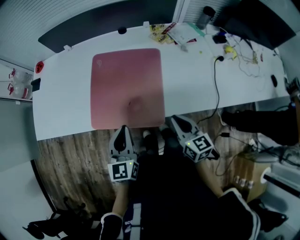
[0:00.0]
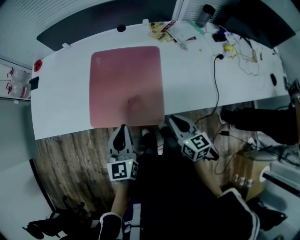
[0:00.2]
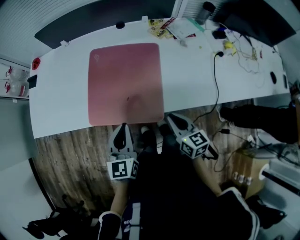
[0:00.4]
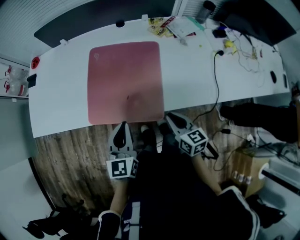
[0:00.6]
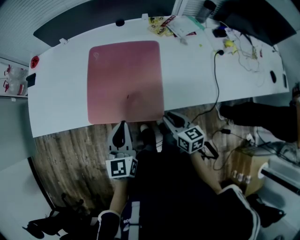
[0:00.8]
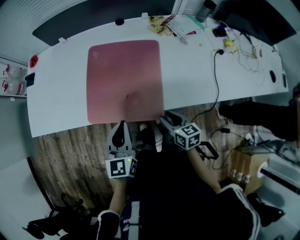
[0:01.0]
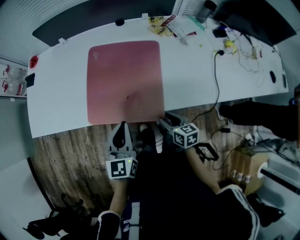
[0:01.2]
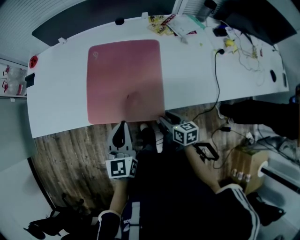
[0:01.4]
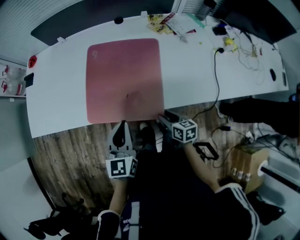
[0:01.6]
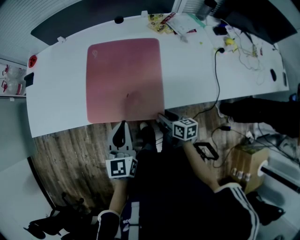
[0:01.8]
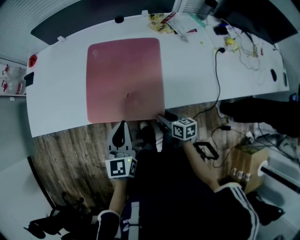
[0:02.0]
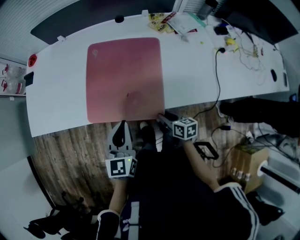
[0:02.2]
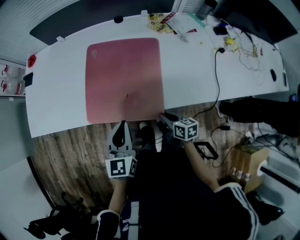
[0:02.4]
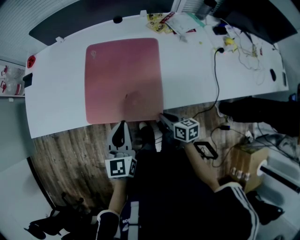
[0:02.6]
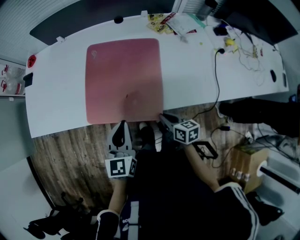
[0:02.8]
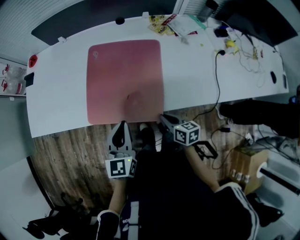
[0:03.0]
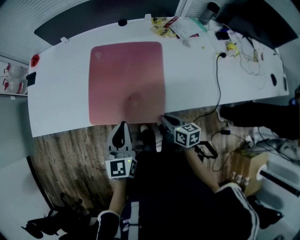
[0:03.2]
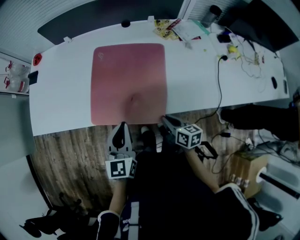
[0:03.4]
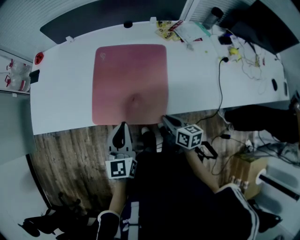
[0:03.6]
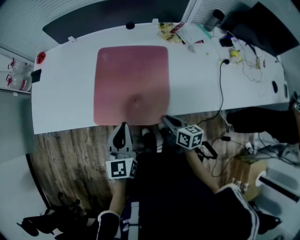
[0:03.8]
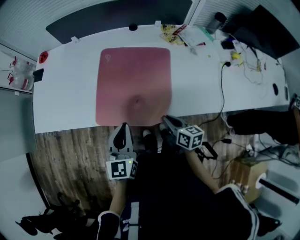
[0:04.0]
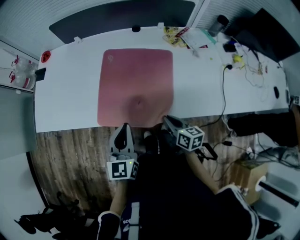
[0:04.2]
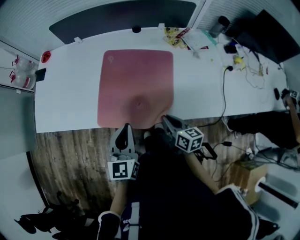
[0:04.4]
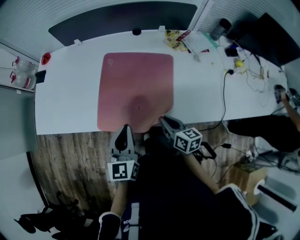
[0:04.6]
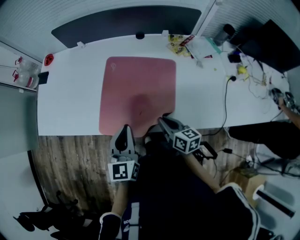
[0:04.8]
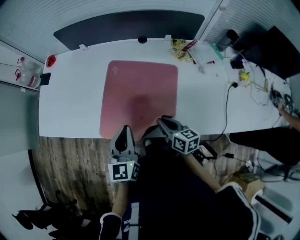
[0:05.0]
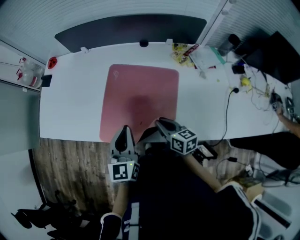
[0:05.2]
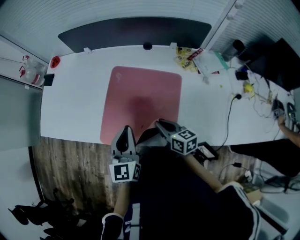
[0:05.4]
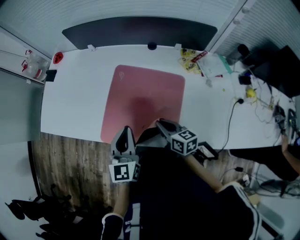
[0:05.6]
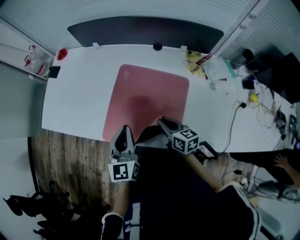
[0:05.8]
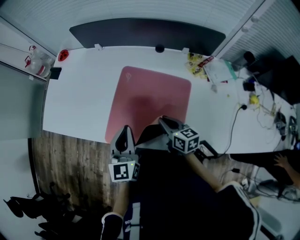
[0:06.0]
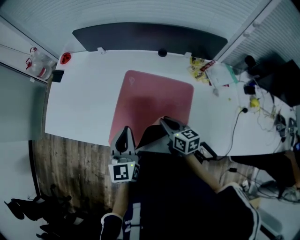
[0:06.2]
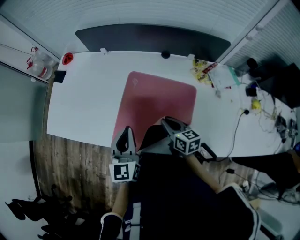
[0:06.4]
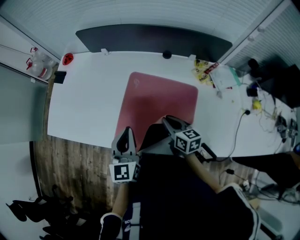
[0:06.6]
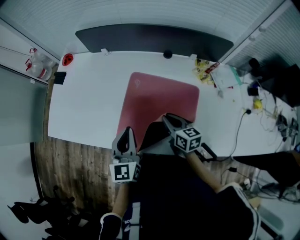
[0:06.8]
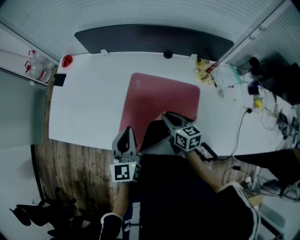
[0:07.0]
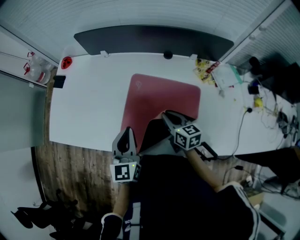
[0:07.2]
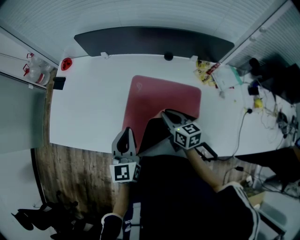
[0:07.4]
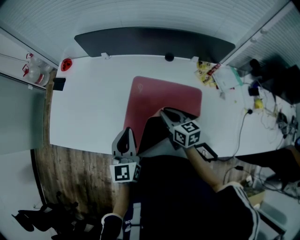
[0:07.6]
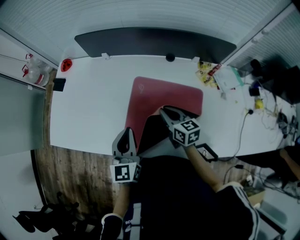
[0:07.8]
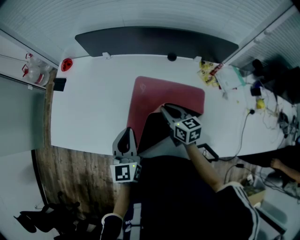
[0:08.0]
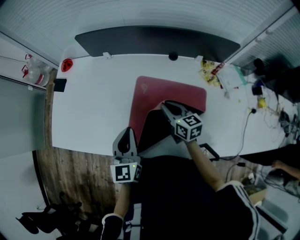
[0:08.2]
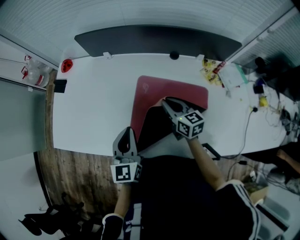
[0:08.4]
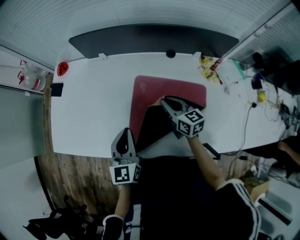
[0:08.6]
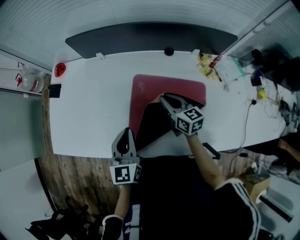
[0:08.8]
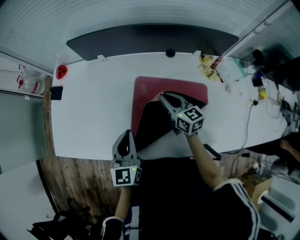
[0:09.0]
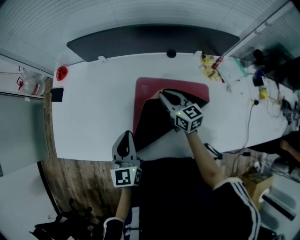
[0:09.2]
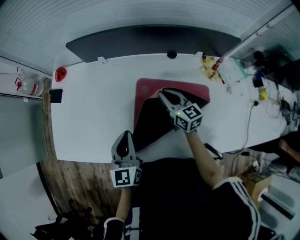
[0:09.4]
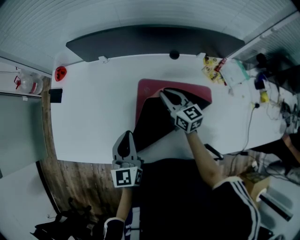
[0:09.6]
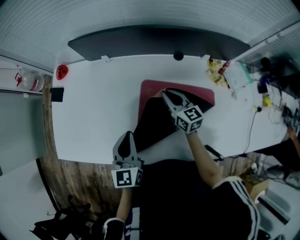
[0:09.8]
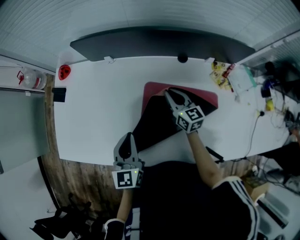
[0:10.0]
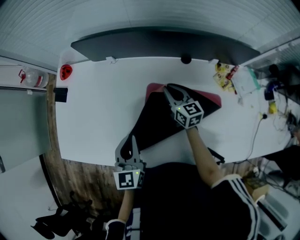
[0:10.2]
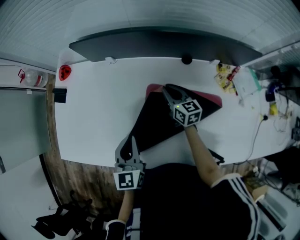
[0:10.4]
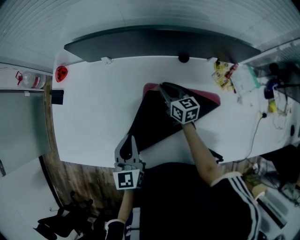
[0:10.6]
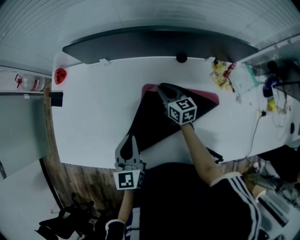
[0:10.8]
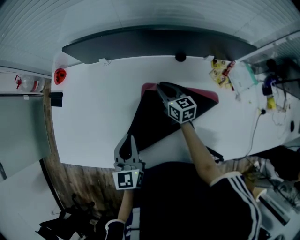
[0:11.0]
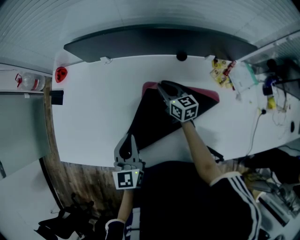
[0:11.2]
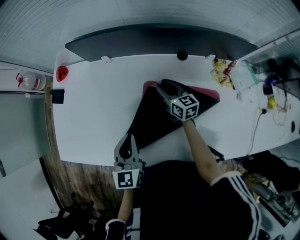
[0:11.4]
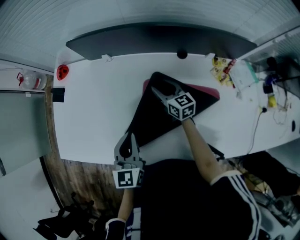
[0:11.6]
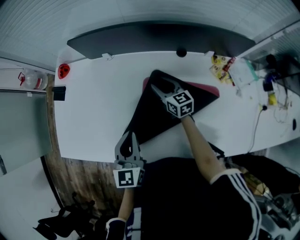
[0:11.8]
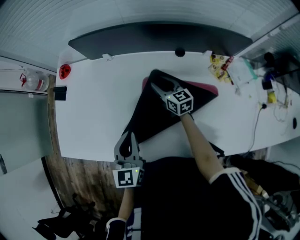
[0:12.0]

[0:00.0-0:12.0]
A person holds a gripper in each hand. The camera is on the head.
0:00.0 to 0:01.6: The right gripper heads downward, covering approximately 15 cm, turns by about 30 degrees, and opens.
0:01.6 to 0:03.0: The right gripper closes its fingers.
0:03.0 to 0:04.4: The right gripper moves upward, some 5 cm.
0:04.4 to 0:06.0: The two grippers go roughly 15 cm forward.
0:06.0 to 0:07.6: The right gripper heads forward, covering roughly 10 cm. The left gripper moves forward and to the left, approximately 10 cm.
0:07.6 to 0:09.0: The right gripper is displaced forward by approximately 10 cm.
0:09.0 to 0:10.4: The right gripper travels forward and downward by roughly 15 cm; the left gripper goes approximately 5 cm forward.
0:10.4 to 0:12.0: The right gripper opens up.

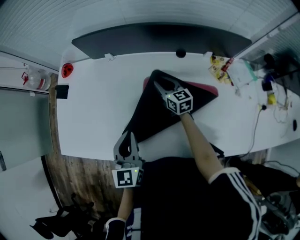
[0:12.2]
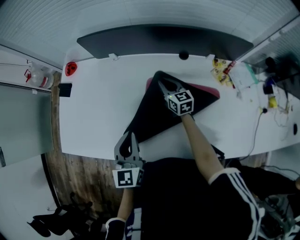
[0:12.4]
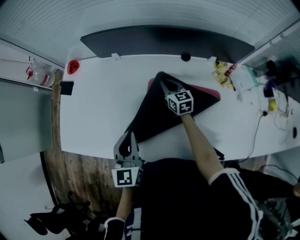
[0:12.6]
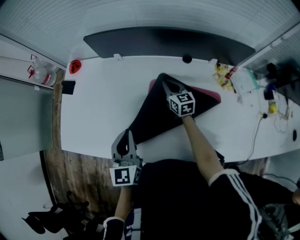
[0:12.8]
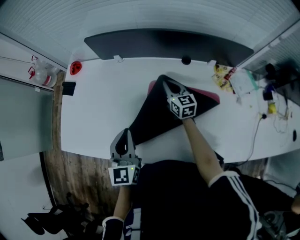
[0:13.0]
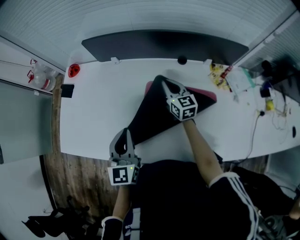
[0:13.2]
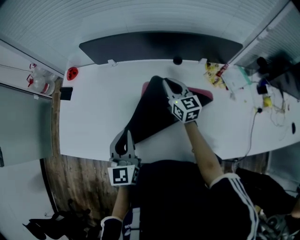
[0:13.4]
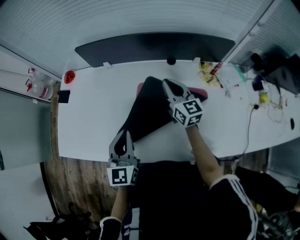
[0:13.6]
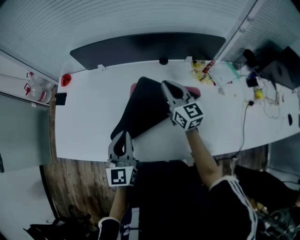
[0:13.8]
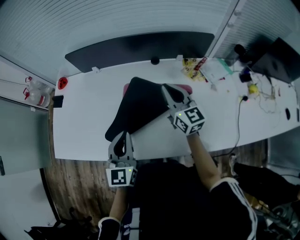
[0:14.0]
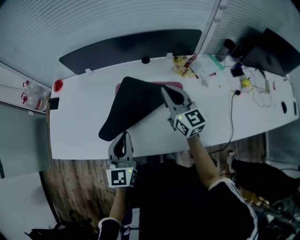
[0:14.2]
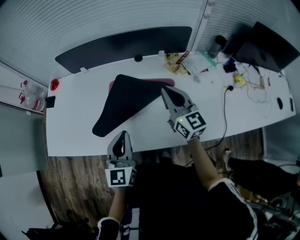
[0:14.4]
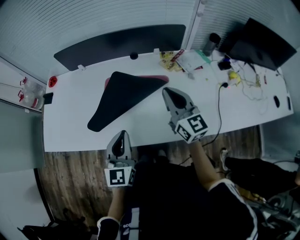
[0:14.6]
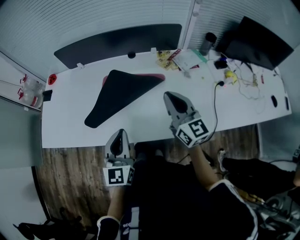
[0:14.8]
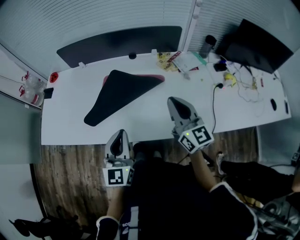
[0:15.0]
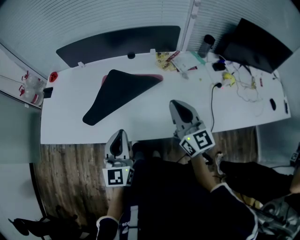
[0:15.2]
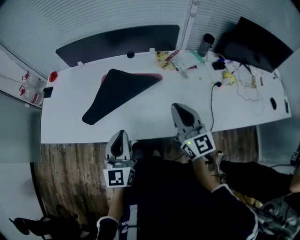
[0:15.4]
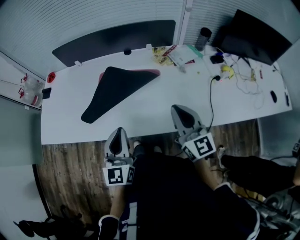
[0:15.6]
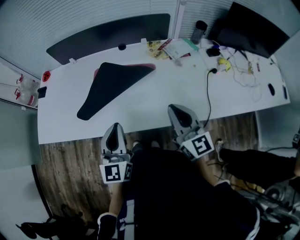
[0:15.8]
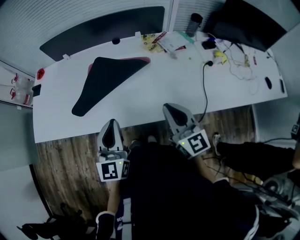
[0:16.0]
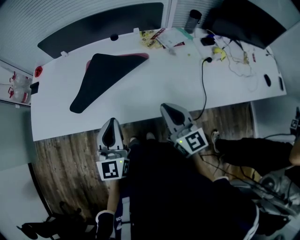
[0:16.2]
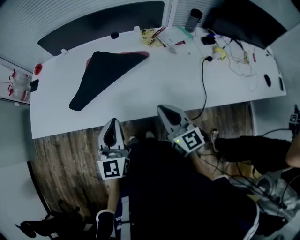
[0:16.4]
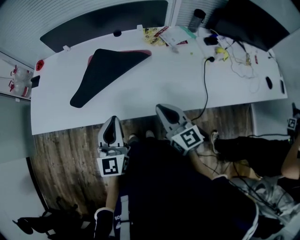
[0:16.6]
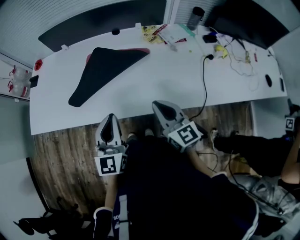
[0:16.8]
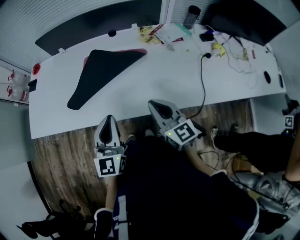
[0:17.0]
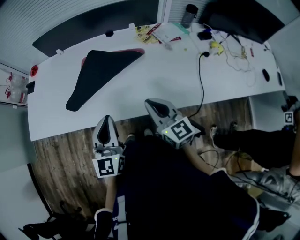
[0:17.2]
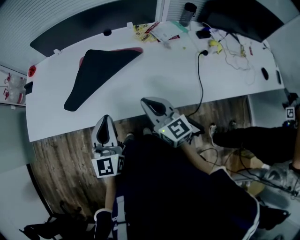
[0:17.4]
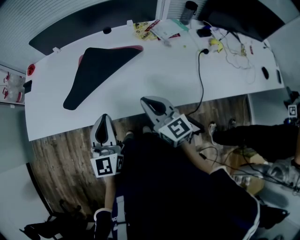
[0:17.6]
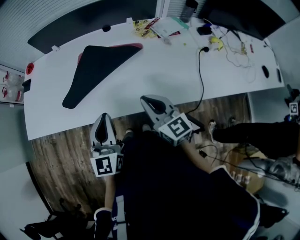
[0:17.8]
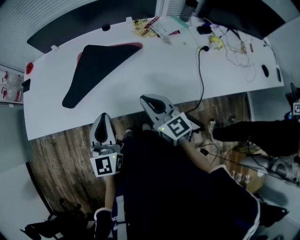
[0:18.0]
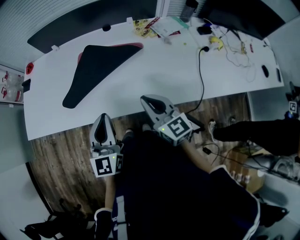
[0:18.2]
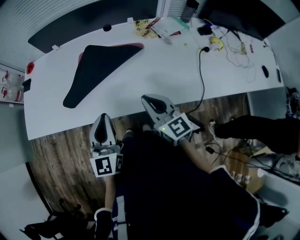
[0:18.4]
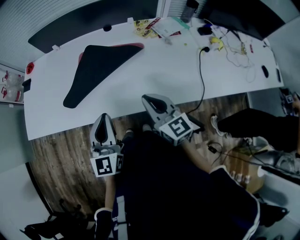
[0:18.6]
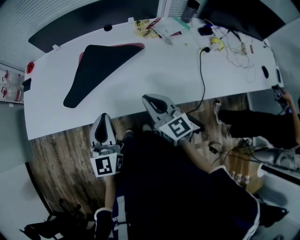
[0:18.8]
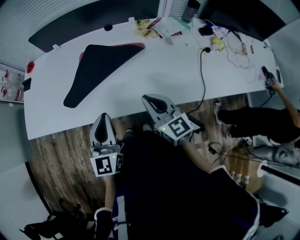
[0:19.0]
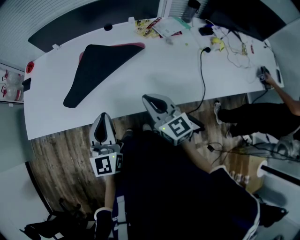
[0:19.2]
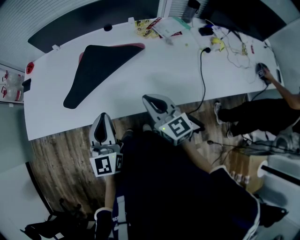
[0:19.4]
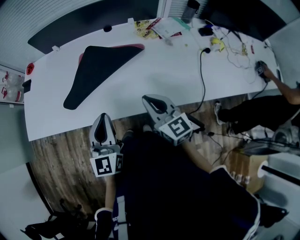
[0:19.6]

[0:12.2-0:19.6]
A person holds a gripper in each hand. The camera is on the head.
0:12.2 to 0:13.6: The right gripper is displaced upward, backward and to the right by approximately 15 cm, and closes.
0:13.6 to 0:15.2: Both grippers travel together backward and to the right, about 30 cm.
0:15.2 to 0:16.6: The right gripper travels backward and downward by approximately 15 cm.
0:16.6 to 0:18.2: There are only small adjustments of the grippers.
0:18.2 to 0:19.6: The two grippers keep their place.

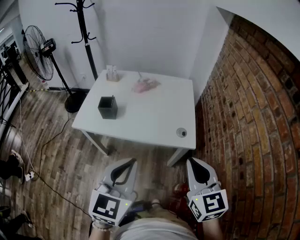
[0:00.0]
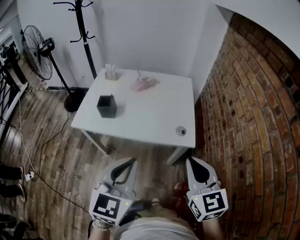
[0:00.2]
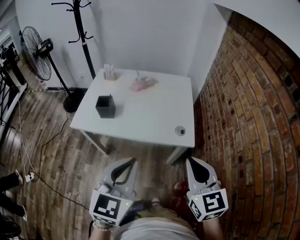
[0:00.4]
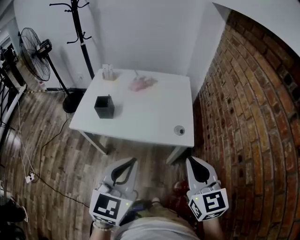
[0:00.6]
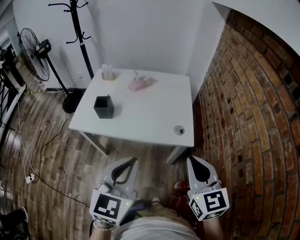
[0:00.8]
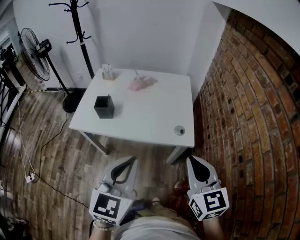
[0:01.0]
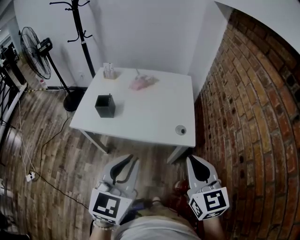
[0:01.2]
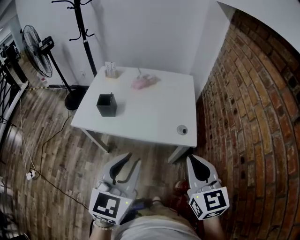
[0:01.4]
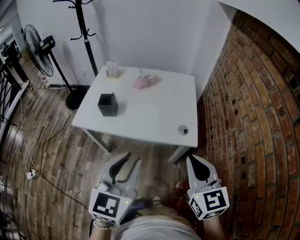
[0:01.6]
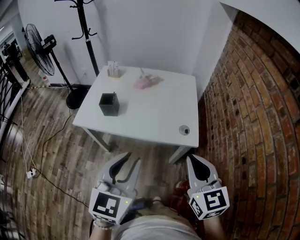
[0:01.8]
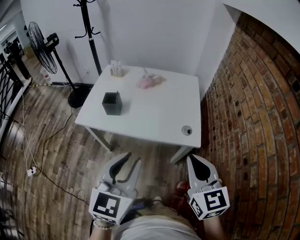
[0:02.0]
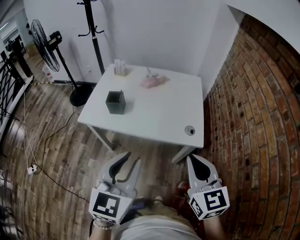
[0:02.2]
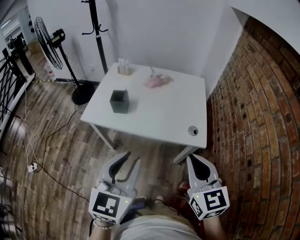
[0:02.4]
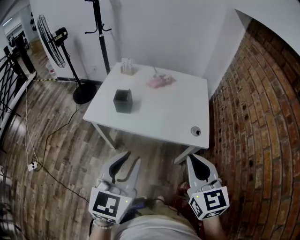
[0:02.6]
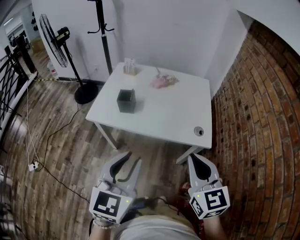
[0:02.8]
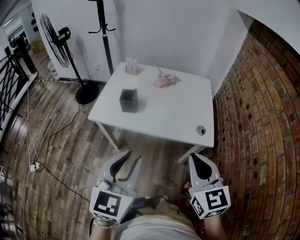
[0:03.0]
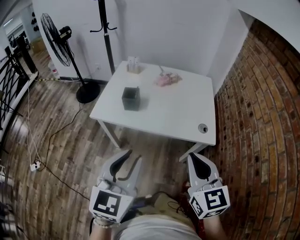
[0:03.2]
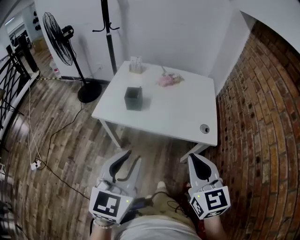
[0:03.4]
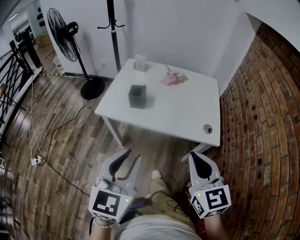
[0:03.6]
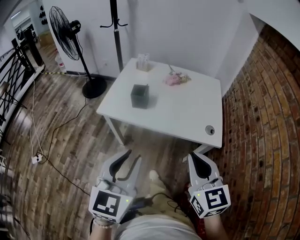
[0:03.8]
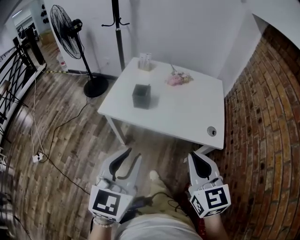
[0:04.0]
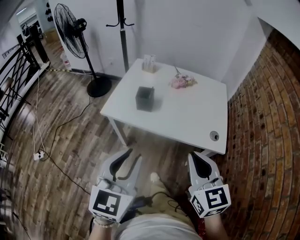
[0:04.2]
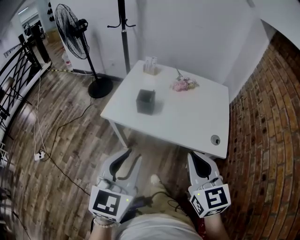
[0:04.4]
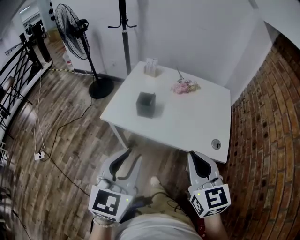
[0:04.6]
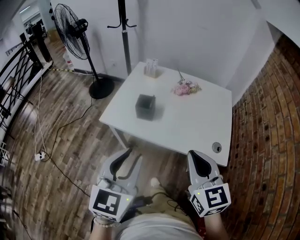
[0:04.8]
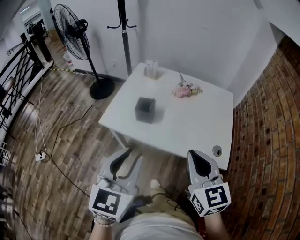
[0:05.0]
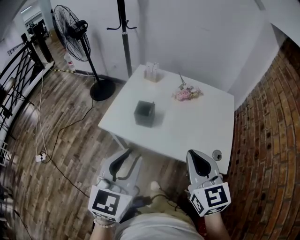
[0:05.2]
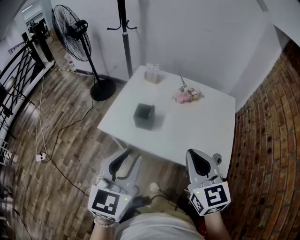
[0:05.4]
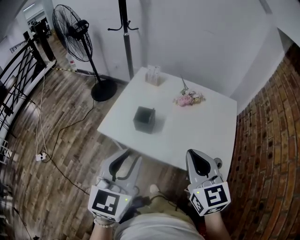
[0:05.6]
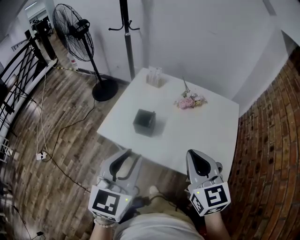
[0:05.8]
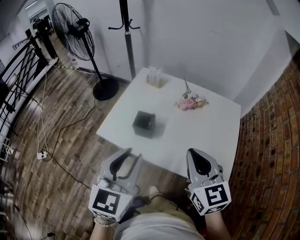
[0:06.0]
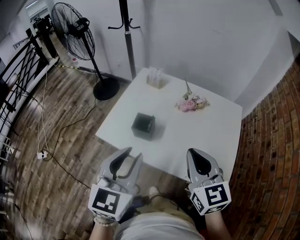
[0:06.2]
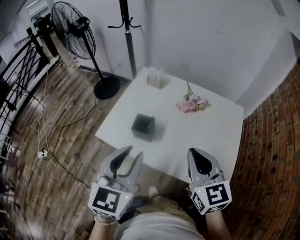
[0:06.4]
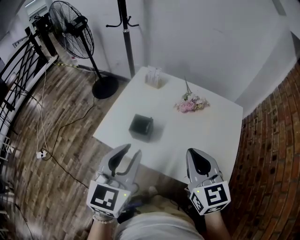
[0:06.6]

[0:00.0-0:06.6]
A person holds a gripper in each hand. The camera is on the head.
0:00.0 to 0:01.6: The left gripper opens.
0:01.6 to 0:03.2: The two grippers go about 10 cm to the left.
0:03.2 to 0:05.0: Both grippers travel together forward, about 10 cm.
0:05.0 to 0:06.6: Both grippers travel together forward, some 15 cm.
